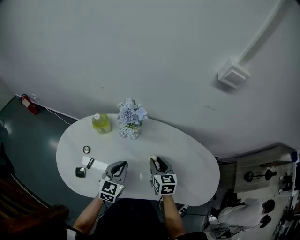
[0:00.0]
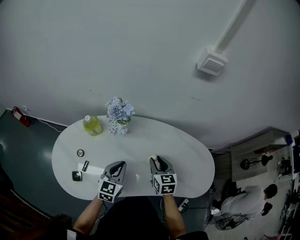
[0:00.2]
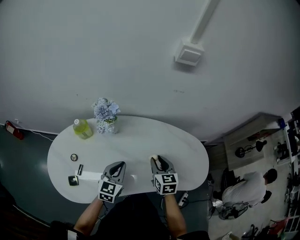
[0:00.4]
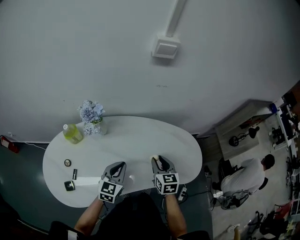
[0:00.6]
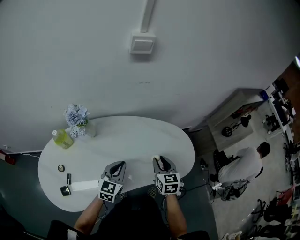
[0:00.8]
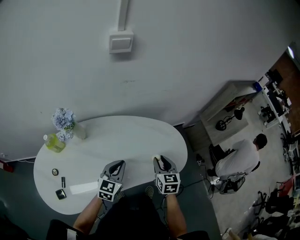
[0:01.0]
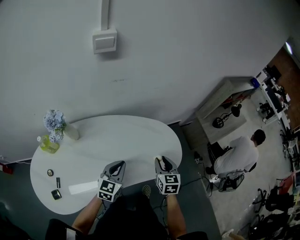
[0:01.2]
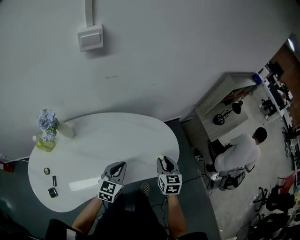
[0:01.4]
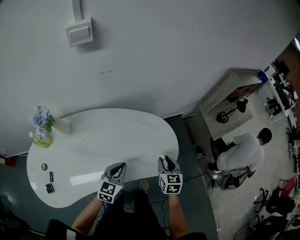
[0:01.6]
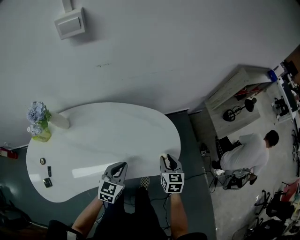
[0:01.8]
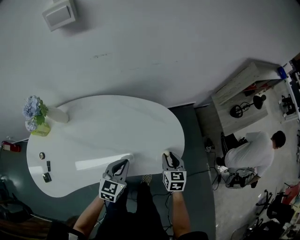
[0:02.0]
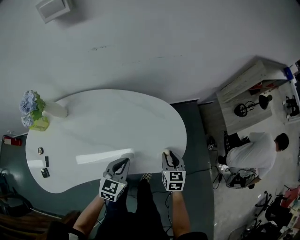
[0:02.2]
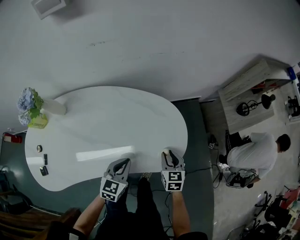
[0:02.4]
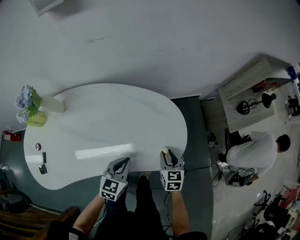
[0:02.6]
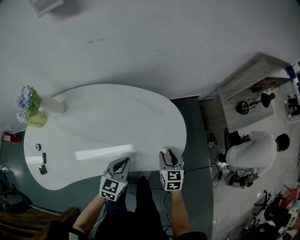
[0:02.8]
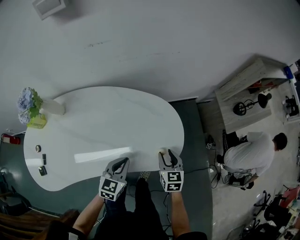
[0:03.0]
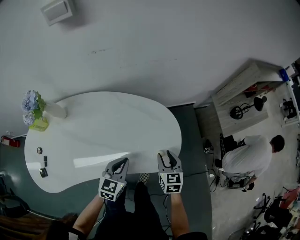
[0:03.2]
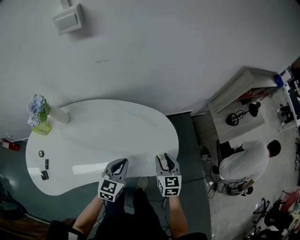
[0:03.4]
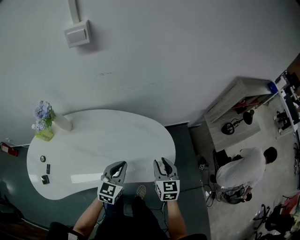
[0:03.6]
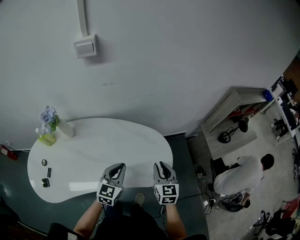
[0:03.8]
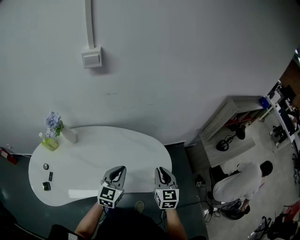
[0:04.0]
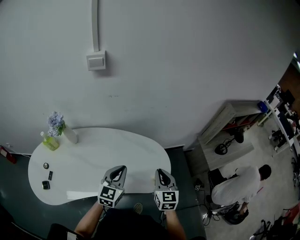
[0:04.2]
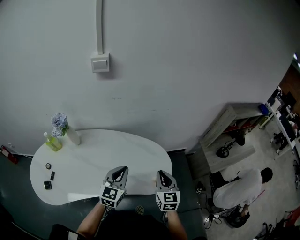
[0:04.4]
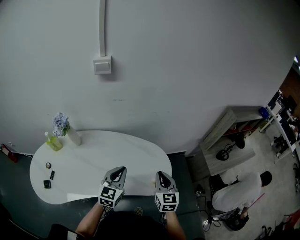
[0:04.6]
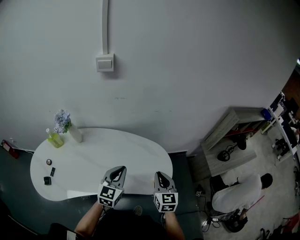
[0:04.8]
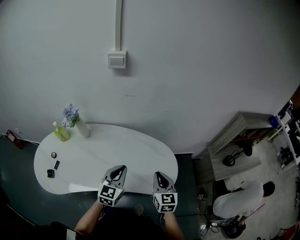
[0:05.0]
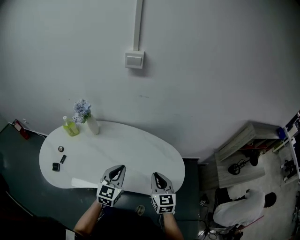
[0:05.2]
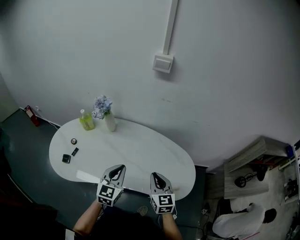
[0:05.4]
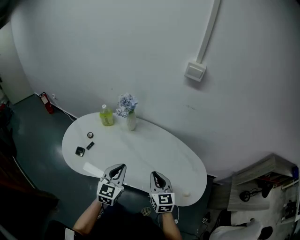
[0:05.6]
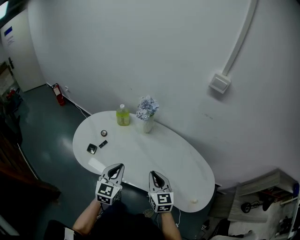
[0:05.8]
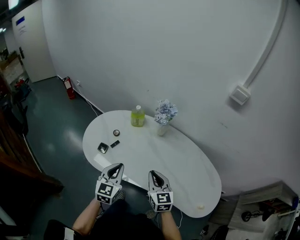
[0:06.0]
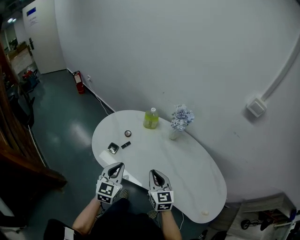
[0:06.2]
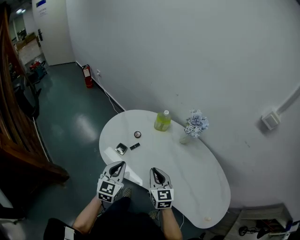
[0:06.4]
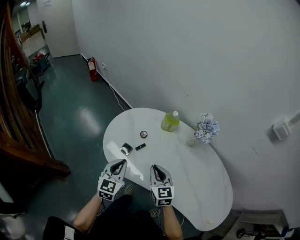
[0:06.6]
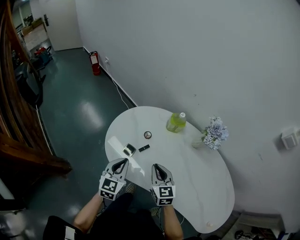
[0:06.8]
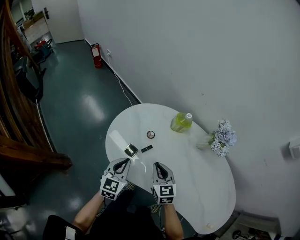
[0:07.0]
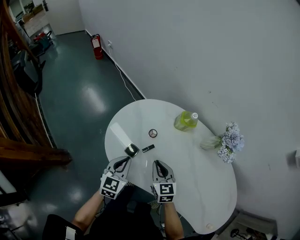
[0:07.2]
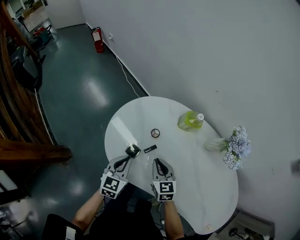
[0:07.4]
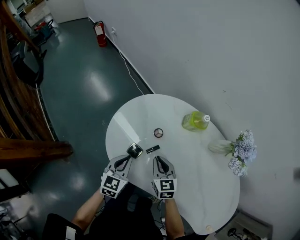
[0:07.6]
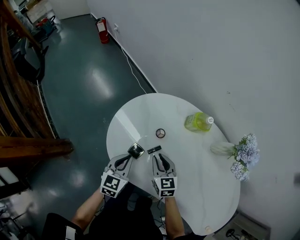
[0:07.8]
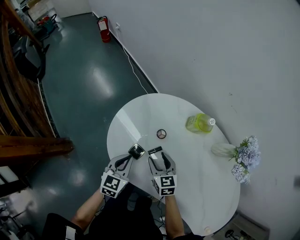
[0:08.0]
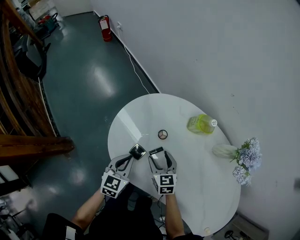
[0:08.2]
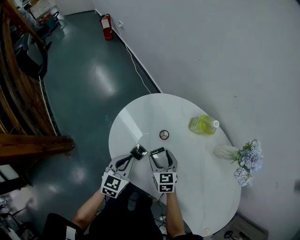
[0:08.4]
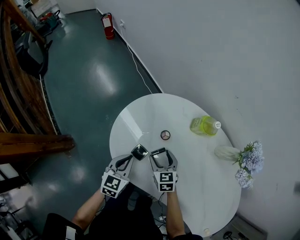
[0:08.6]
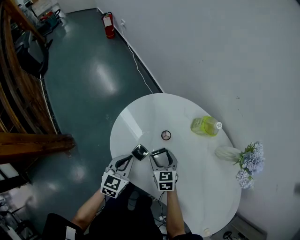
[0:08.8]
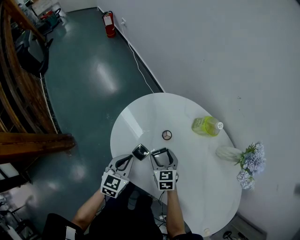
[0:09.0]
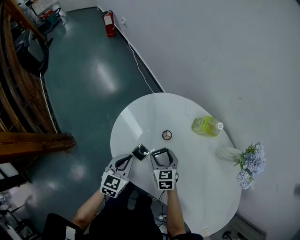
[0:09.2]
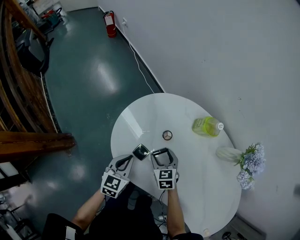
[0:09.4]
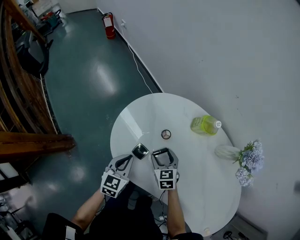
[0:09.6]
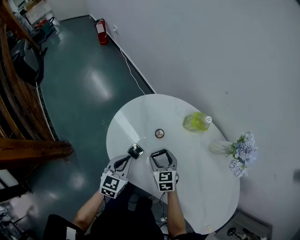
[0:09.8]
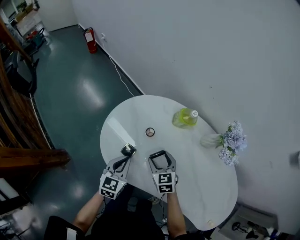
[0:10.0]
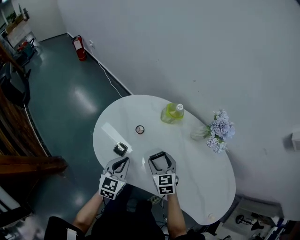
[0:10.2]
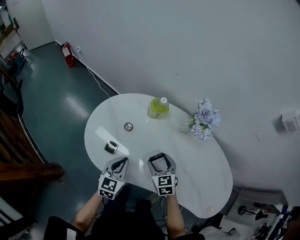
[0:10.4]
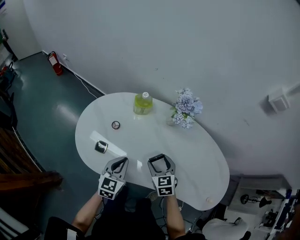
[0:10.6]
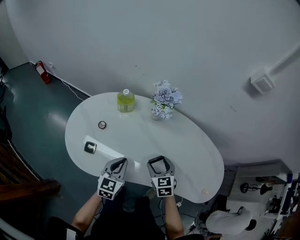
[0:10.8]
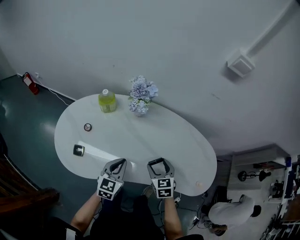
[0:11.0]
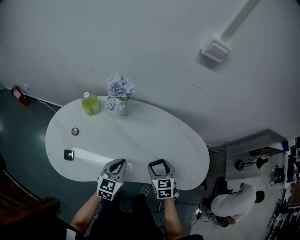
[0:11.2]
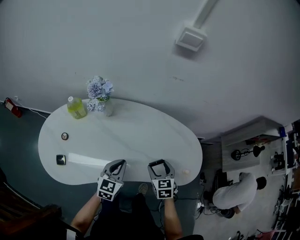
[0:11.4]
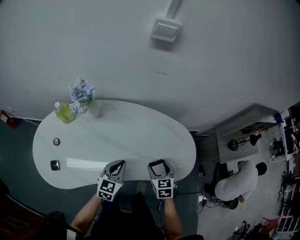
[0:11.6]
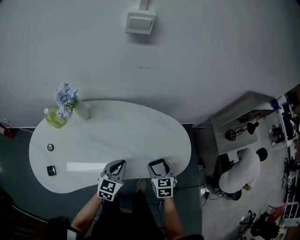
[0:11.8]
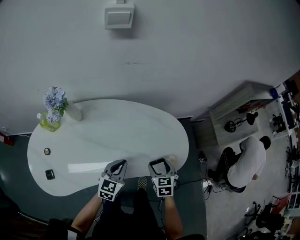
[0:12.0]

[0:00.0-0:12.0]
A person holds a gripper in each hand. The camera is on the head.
0:00.0 to 0:01.6: The left gripper moves roughly 35 cm, and changes its angle by roughly 30 degrees. The right gripper moves roughly 40 cm, and swivels approximately 40 degrees.
0:01.6 to 0:03.0: The left gripper goes about 10 cm downward and to the right. The right gripper travels downward by about 10 cm.
0:03.0 to 0:04.4: The two grippers go about 20 cm upward. The right gripper changes its angle by about 20 degrees, and closes its fingers; the left gripper swivels about 20 degrees.
0:04.4 to 0:06.0: The pair of grippers is taken approximately 40 cm. The left gripper rotates about 50 degrees, while the right gripper rotates approximately 50 degrees.
0:06.0 to 0:07.6: The two grippers go roughly 35 cm forward, to the left and downward. The right gripper turns by about 20 degrees, while the left gripper changes its angle by some 20 degrees.
0:07.6 to 0:09.0: The right gripper shifts some 5 cm downward, and opens up.
0:09.0 to 0:10.4: Both grippers travel together to the right, upward and backward, about 20 cm.
0:10.4 to 0:12.0: The two grippers travel together, some 50 cm. The left gripper turns by roughly 50 degrees, while the right gripper turns by approximately 50 degrees.

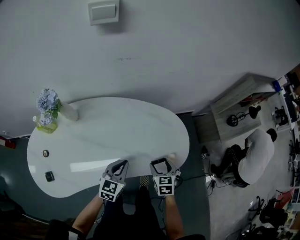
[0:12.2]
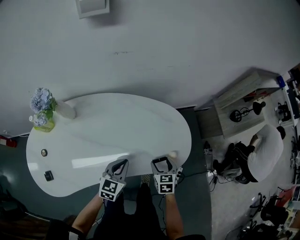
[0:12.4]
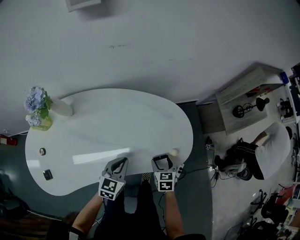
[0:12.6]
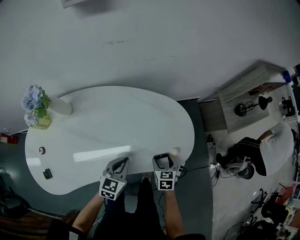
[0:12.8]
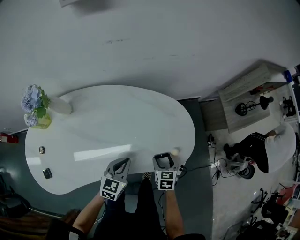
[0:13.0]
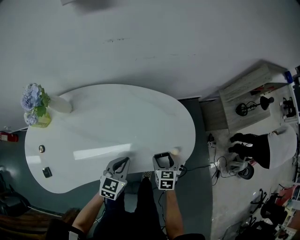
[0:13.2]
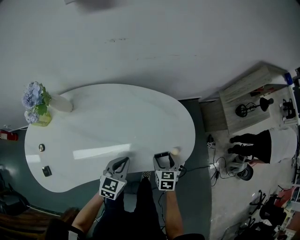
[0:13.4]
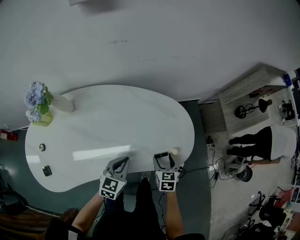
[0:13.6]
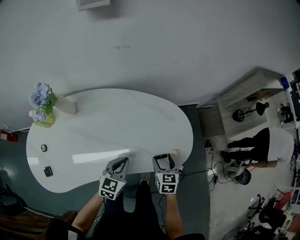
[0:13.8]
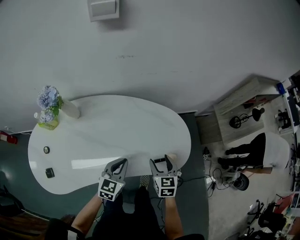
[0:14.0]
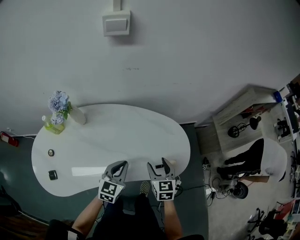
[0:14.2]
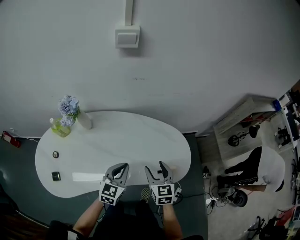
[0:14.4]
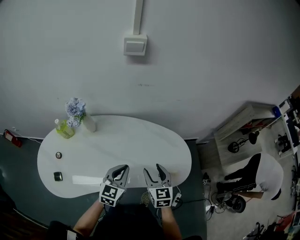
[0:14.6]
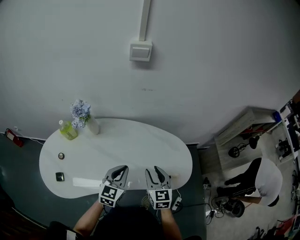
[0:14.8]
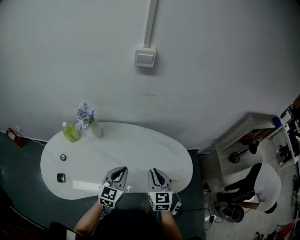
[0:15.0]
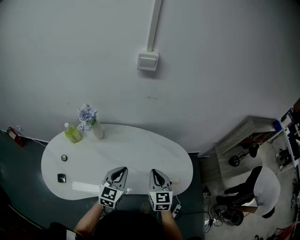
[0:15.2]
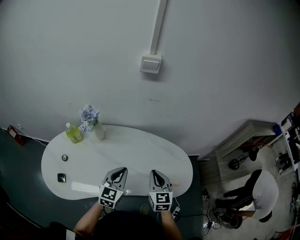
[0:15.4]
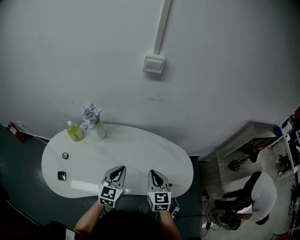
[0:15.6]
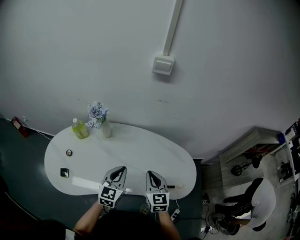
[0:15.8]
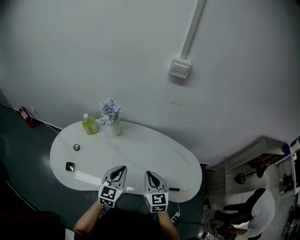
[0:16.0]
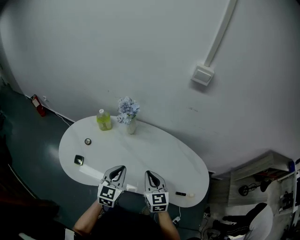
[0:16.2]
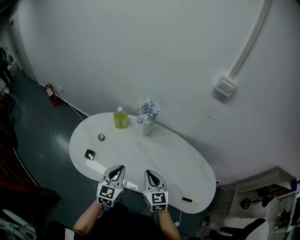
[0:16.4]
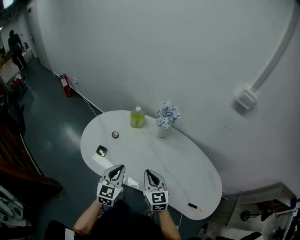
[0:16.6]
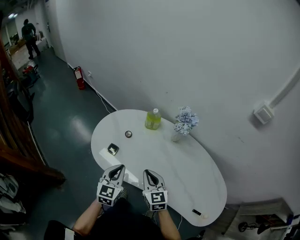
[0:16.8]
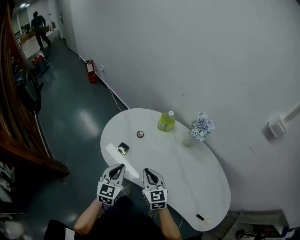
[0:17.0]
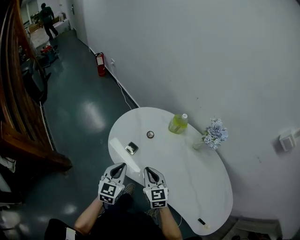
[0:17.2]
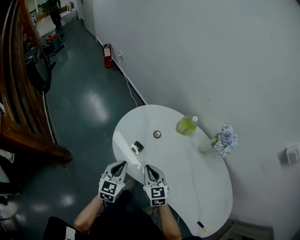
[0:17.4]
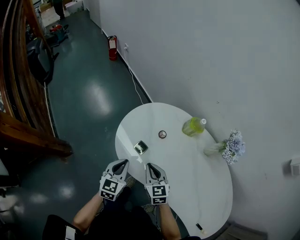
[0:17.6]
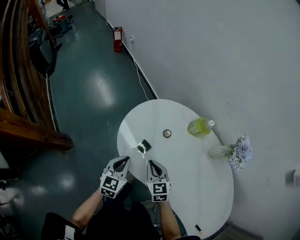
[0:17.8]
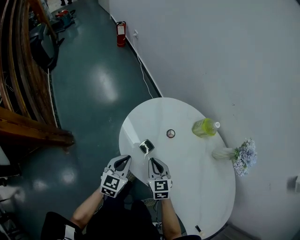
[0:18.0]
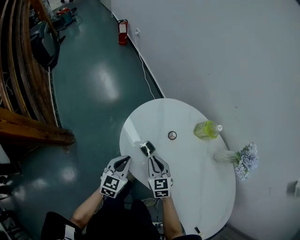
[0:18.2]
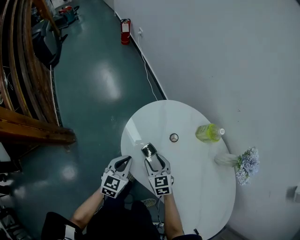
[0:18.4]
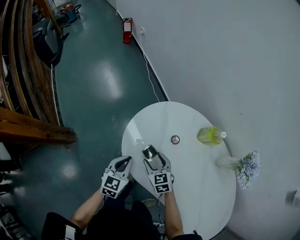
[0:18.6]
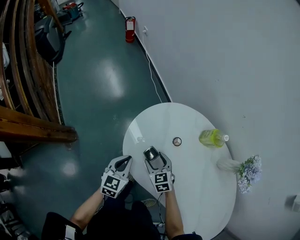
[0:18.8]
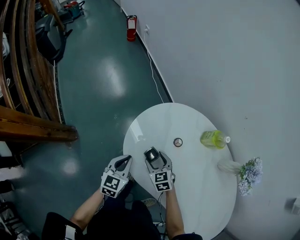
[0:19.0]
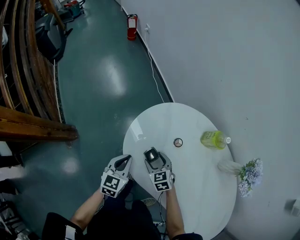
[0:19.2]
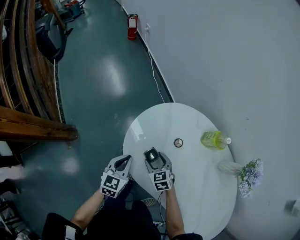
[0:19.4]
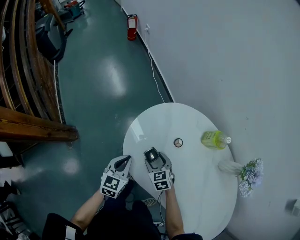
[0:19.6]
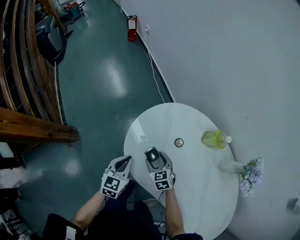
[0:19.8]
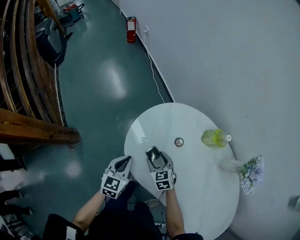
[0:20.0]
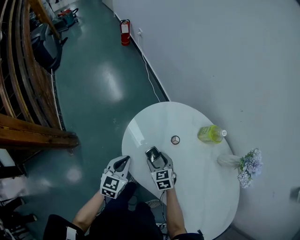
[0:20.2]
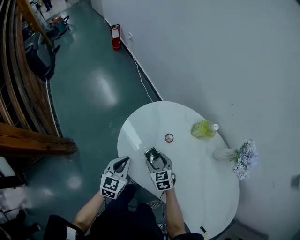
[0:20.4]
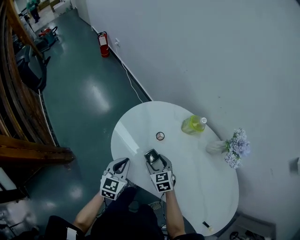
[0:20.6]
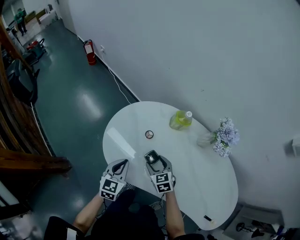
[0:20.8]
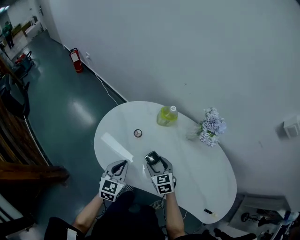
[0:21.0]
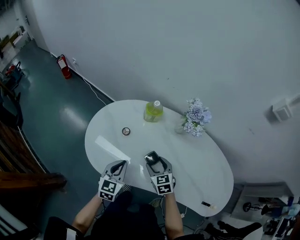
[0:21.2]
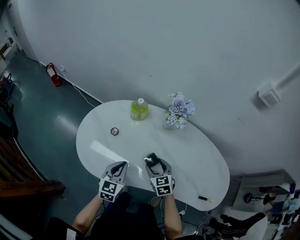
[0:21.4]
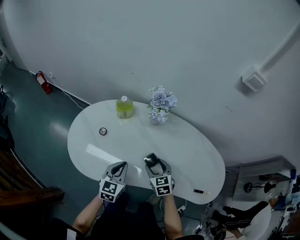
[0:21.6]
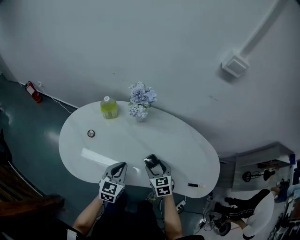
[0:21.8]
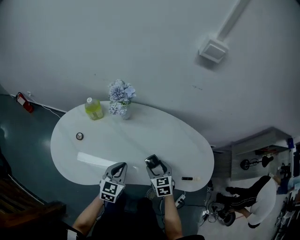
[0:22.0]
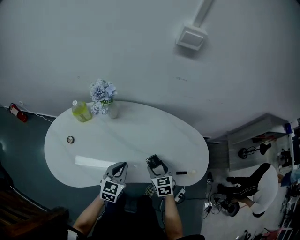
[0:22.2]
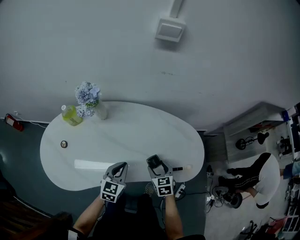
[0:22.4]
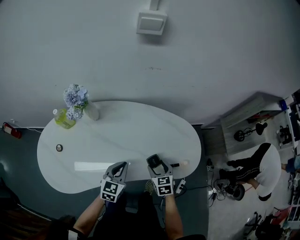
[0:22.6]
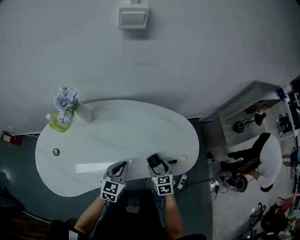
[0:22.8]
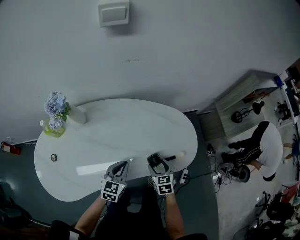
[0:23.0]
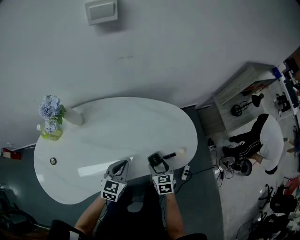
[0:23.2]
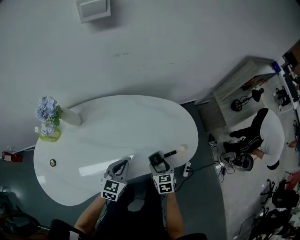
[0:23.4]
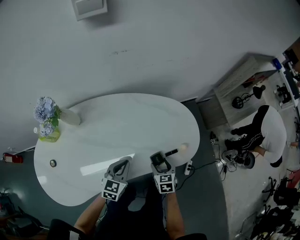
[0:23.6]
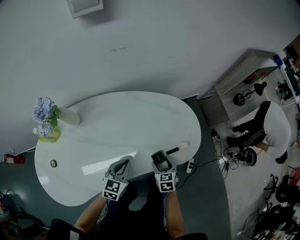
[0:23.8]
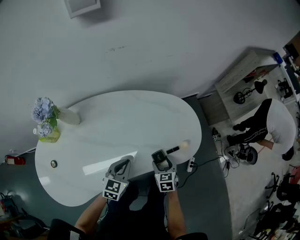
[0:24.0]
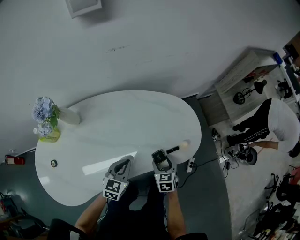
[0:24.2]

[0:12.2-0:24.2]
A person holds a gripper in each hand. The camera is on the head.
0:12.2 to 0:13.8: The right gripper moves roughly 10 cm downward and comes back.
0:13.8 to 0:15.2: The grippers both shift upward and to the left by about 20 cm. The left gripper turns by some 20 degrees. The right gripper changes its angle by roughly 30 degrees, and closes up.
0:15.2 to 0:16.6: The right gripper moves roughly 30 cm, and turns by approximately 40 degrees; the left gripper shifts by roughly 25 cm, and changes its angle by roughly 40 degrees.
0:16.6 to 0:18.2: The left gripper shifts approximately 30 cm to the left, downward and forward, and turns by approximately 30 degrees. Meanwhile the right gripper goes about 35 cm to the left, forward and downward, and swivels roughly 30 degrees.
0:18.2 to 0:19.8: The right gripper is displaced downward by about 10 cm, and opens its fingers.
0:19.8 to 0:21.2: The left gripper ends up roughly 20 cm from where it was, and swivels about 30 degrees; the right gripper changes place by some 25 cm, and turns by about 40 degrees.
0:21.2 to 0:22.6: The right gripper moves some 40 cm, and turns by some 40 degrees. Meanwhile the left gripper moves roughly 35 cm, and changes its angle by approximately 40 degrees.
0:22.6 to 0:24.2: Both grippers travel together downward and to the right, some 10 cm.
